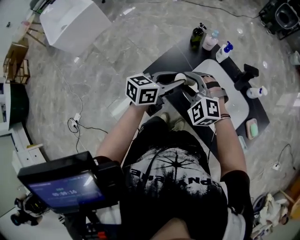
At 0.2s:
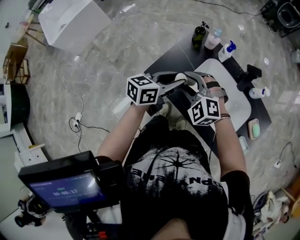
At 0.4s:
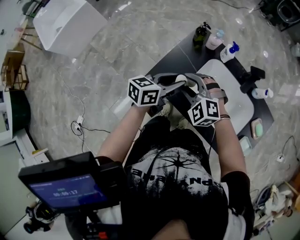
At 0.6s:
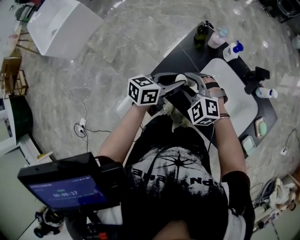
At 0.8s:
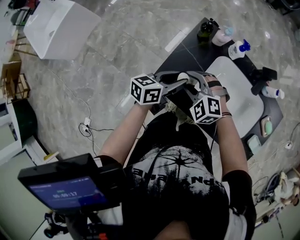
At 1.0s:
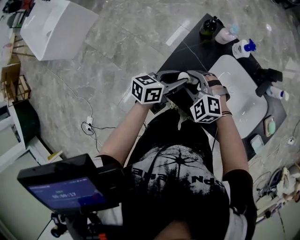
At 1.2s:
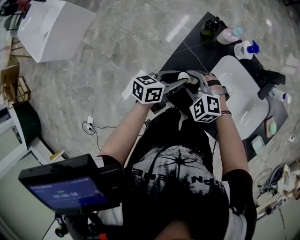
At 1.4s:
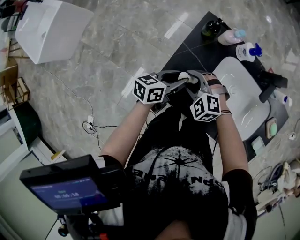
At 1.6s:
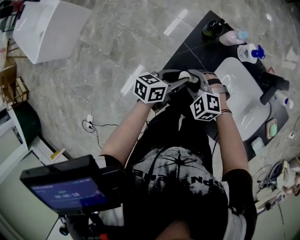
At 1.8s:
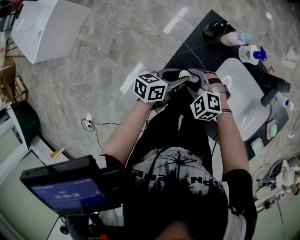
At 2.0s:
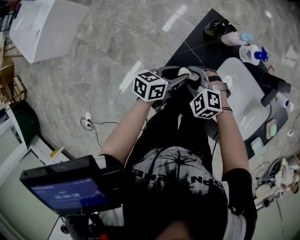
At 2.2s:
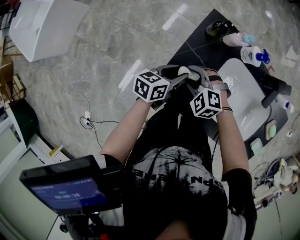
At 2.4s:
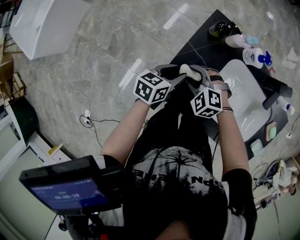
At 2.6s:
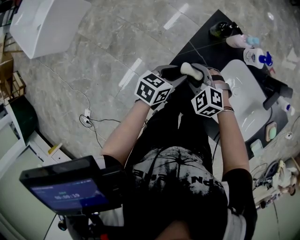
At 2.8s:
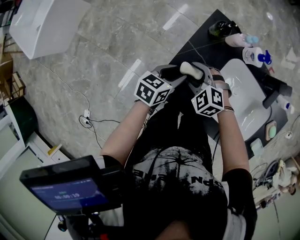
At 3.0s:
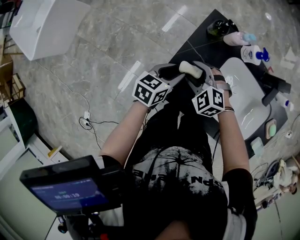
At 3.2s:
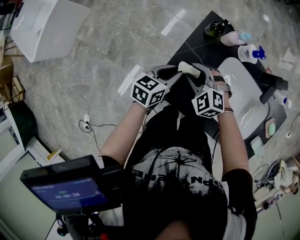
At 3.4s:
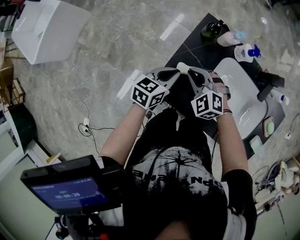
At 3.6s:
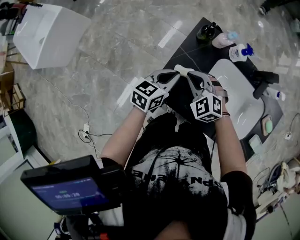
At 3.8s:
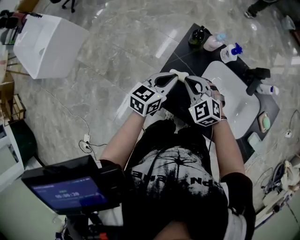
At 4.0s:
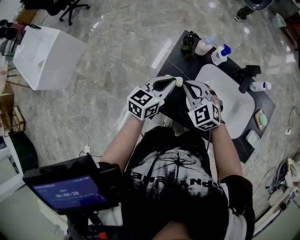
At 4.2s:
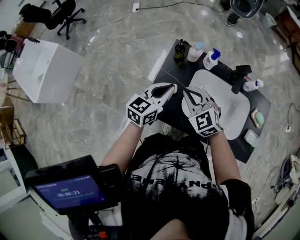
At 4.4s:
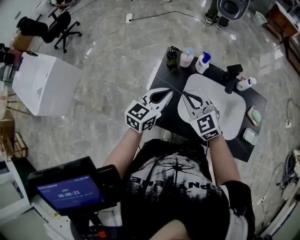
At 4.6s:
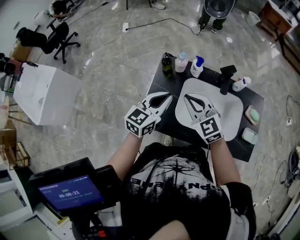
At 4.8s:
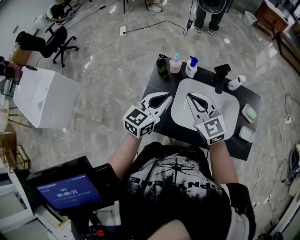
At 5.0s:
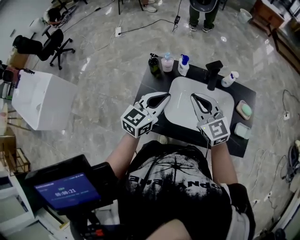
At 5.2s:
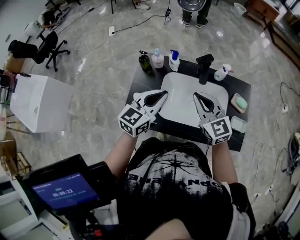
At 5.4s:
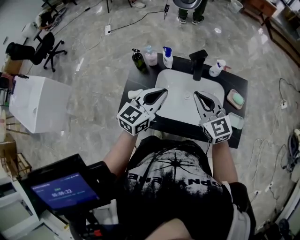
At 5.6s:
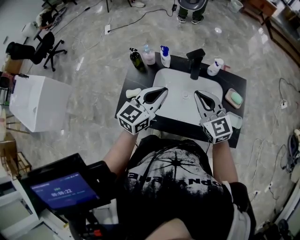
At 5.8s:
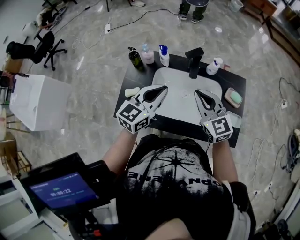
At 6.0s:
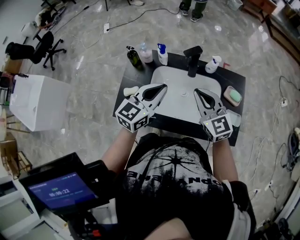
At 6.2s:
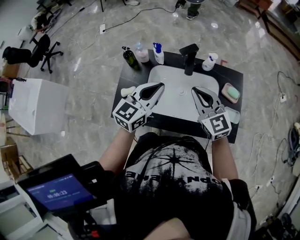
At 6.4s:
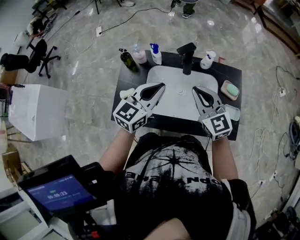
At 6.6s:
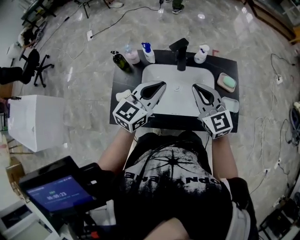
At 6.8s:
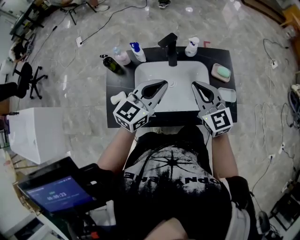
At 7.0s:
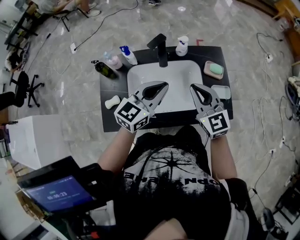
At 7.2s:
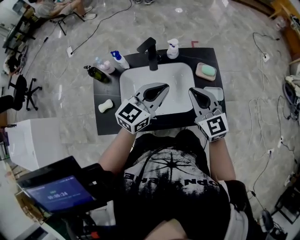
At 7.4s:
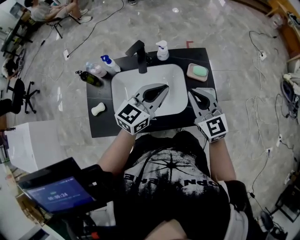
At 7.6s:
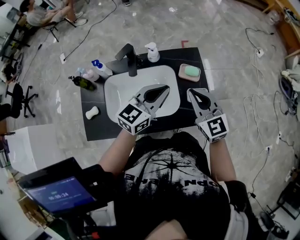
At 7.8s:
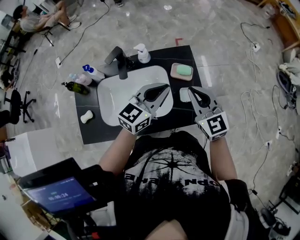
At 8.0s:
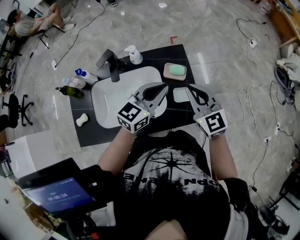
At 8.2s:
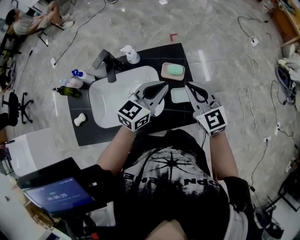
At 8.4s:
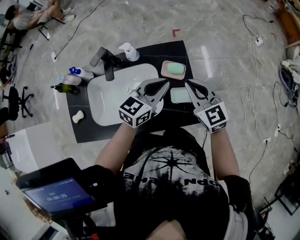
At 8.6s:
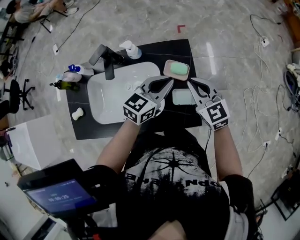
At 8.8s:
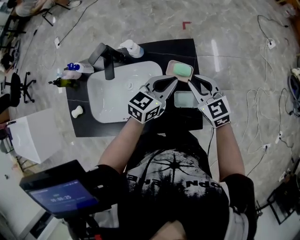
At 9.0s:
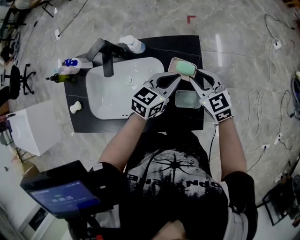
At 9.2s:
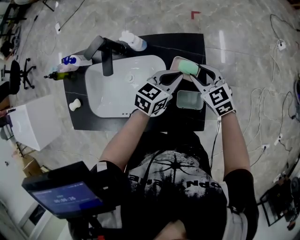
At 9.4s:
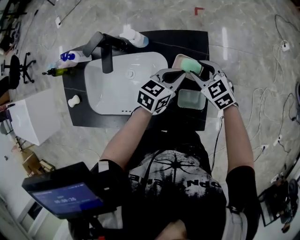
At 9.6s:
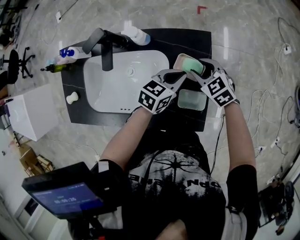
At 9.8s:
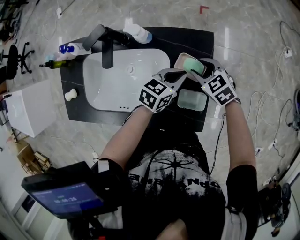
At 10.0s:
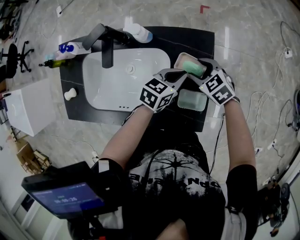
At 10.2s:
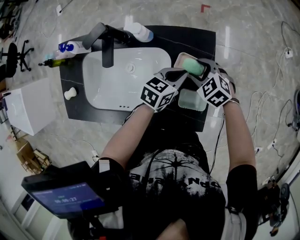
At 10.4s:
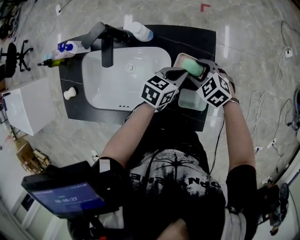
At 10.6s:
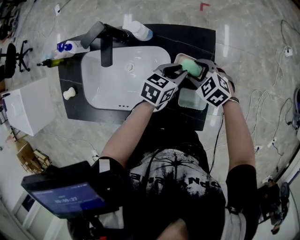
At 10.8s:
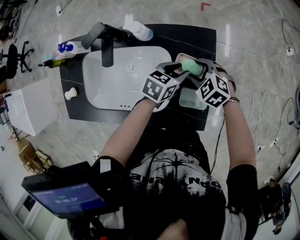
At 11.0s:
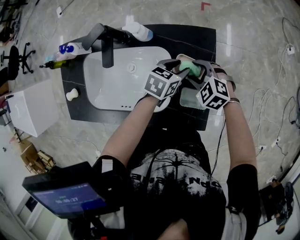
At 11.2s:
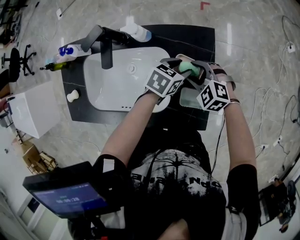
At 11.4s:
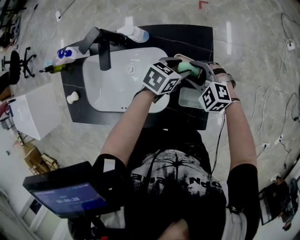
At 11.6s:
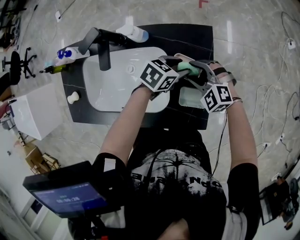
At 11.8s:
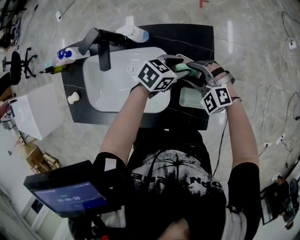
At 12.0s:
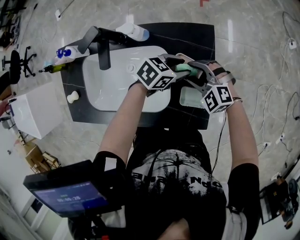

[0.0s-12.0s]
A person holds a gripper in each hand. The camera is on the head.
0.0s to 1.6s: Both grippers travel together downward and forward, some 20 cm. The left gripper swivels some 20 degrees. Meanwhile the right gripper rotates approximately 20 degrees.
1.6s to 3.0s: There are only small adjustments of the grippers.
3.0s to 4.4s: The left gripper travels upward by roughly 20 cm, turns by approximately 30 degrees, and closes its fingers. The right gripper goes about 20 cm upward and to the right, turns by about 40 degrees, and closes.
4.4s to 6.0s: The two grippers go roughly 20 cm to the right. The right gripper changes its angle by roughly 20 degrees.
6.0s to 7.6s: Both grippers travel together to the right, about 25 cm. The right gripper swivels some 20 degrees, while the left gripper changes its angle by approximately 20 degrees.
7.6s to 9.0s: The left gripper is displaced downward, forward and to the right by about 20 cm. Meanwhile the right gripper goes some 20 cm forward, downward and to the right, changes its angle by roughly 20 degrees, and opens.
9.0s to 10.4s: Both grippers move downward, roughly 10 cm. The right gripper turns by some 30 degrees, and opens its fingers.
10.4s to 12.0s: The left gripper changes its angle by some 20 degrees, and opens its fingers; the right gripper swivels approximately 30 degrees.

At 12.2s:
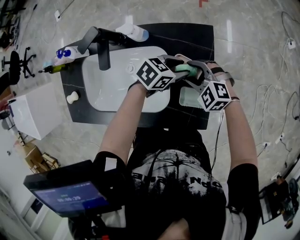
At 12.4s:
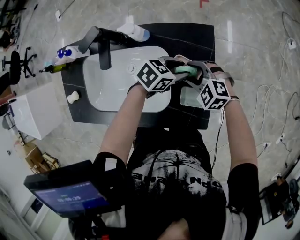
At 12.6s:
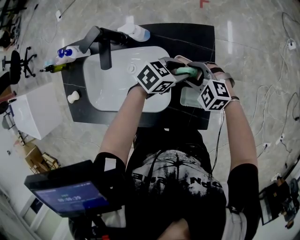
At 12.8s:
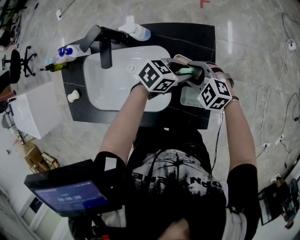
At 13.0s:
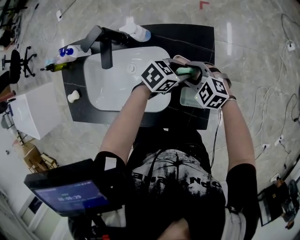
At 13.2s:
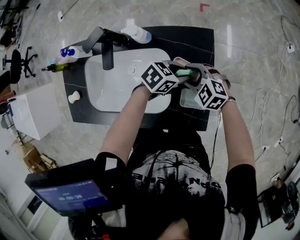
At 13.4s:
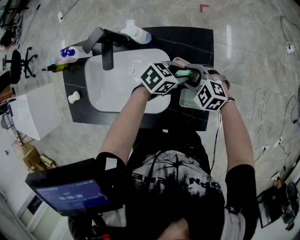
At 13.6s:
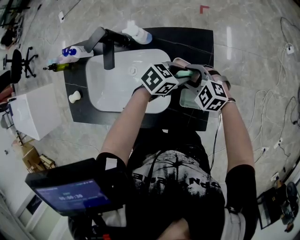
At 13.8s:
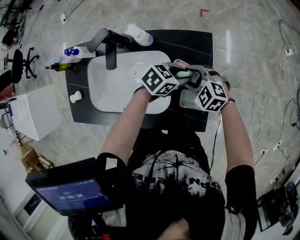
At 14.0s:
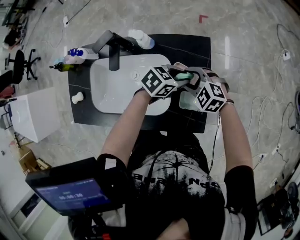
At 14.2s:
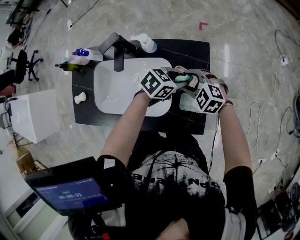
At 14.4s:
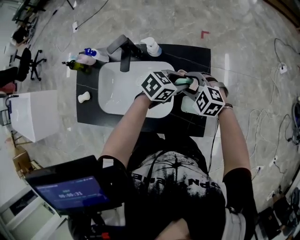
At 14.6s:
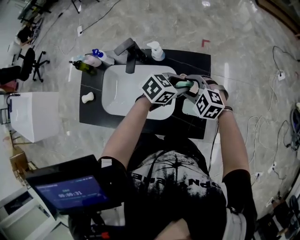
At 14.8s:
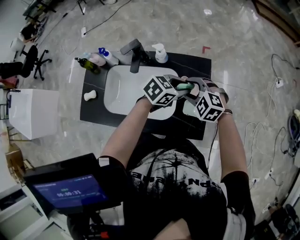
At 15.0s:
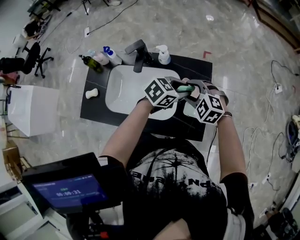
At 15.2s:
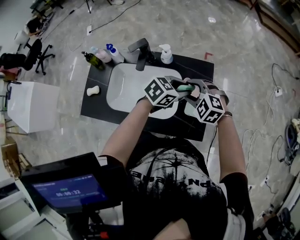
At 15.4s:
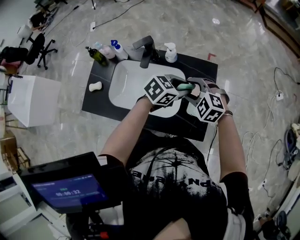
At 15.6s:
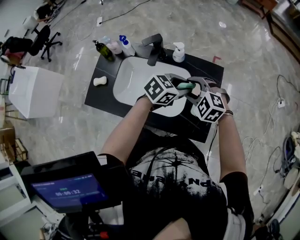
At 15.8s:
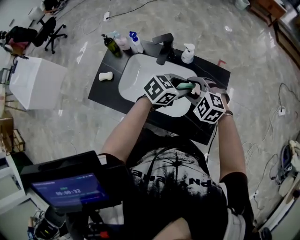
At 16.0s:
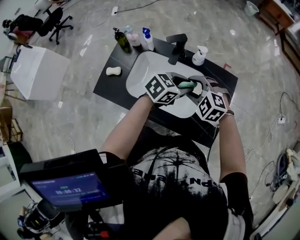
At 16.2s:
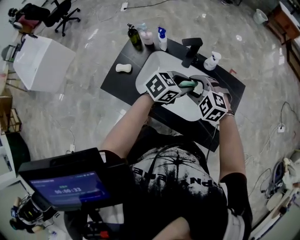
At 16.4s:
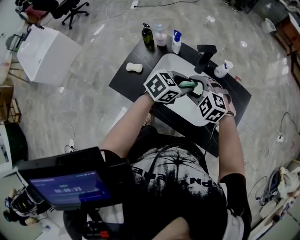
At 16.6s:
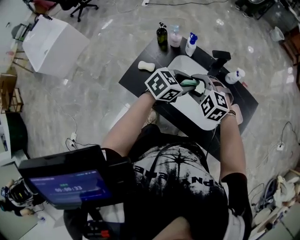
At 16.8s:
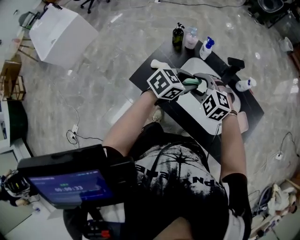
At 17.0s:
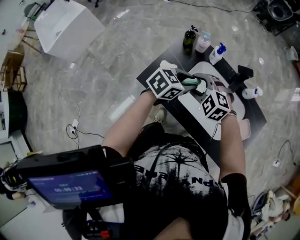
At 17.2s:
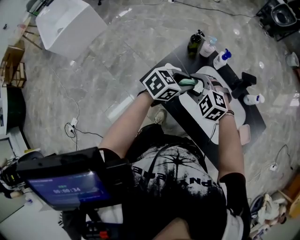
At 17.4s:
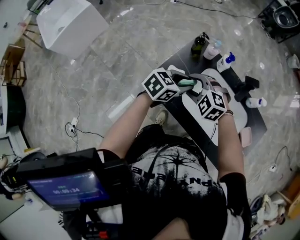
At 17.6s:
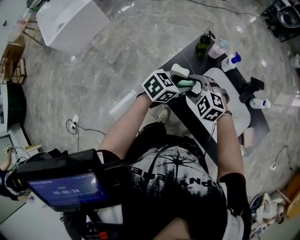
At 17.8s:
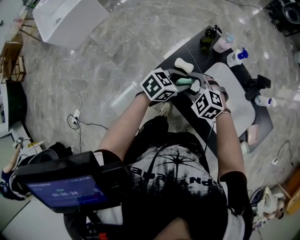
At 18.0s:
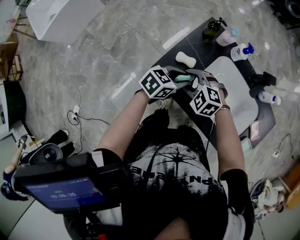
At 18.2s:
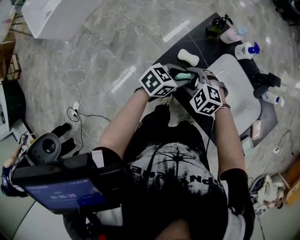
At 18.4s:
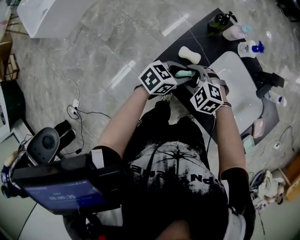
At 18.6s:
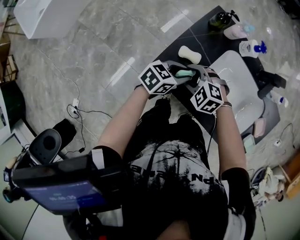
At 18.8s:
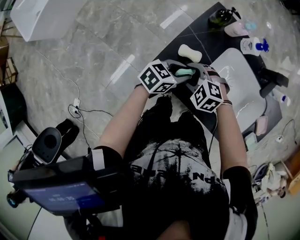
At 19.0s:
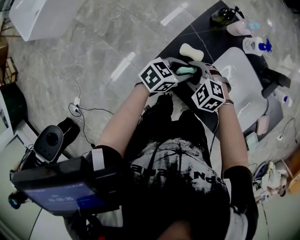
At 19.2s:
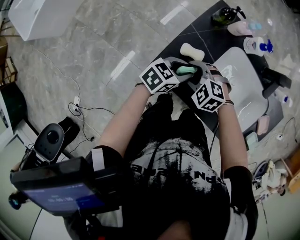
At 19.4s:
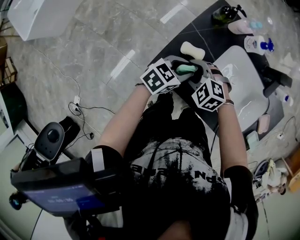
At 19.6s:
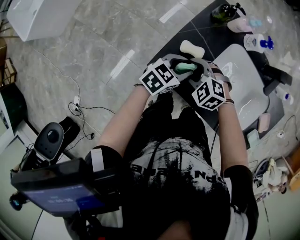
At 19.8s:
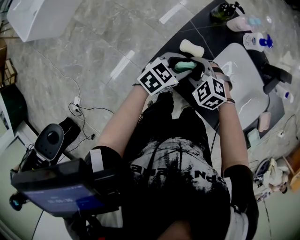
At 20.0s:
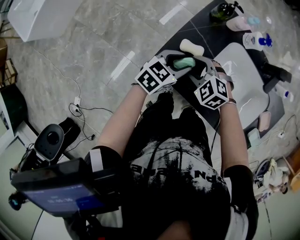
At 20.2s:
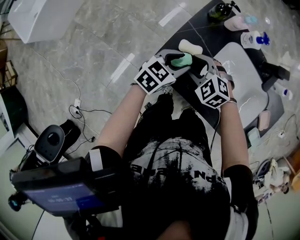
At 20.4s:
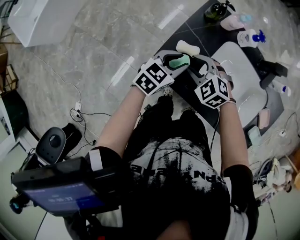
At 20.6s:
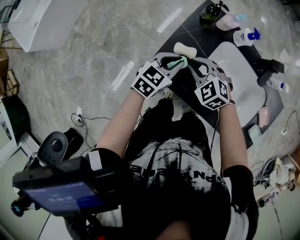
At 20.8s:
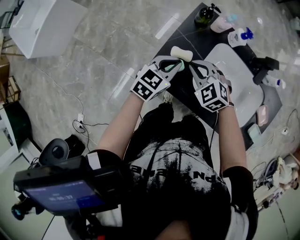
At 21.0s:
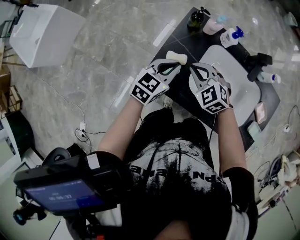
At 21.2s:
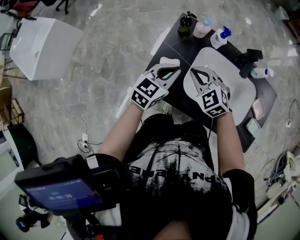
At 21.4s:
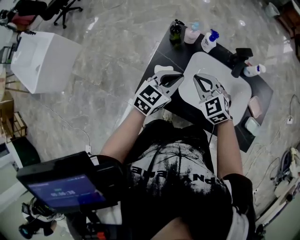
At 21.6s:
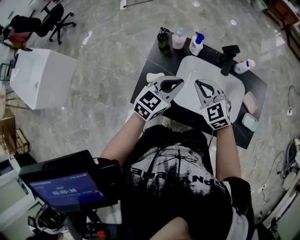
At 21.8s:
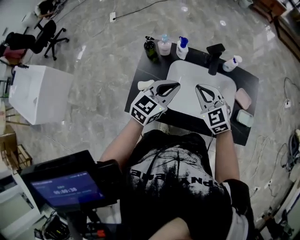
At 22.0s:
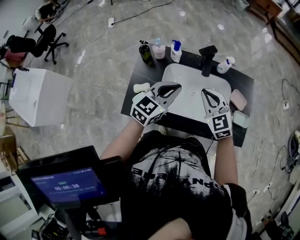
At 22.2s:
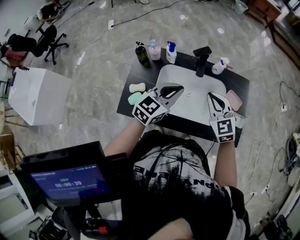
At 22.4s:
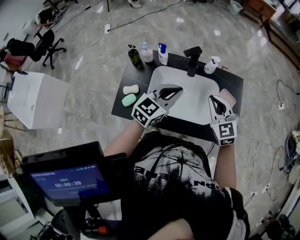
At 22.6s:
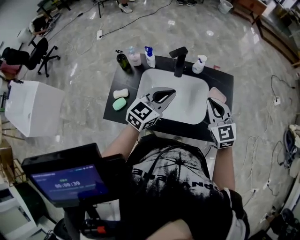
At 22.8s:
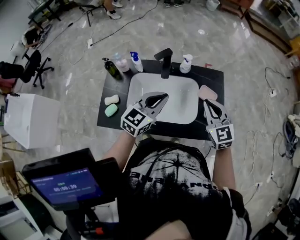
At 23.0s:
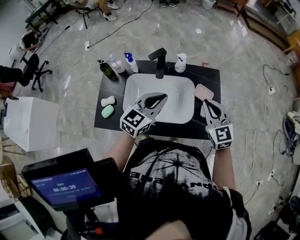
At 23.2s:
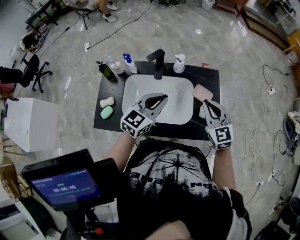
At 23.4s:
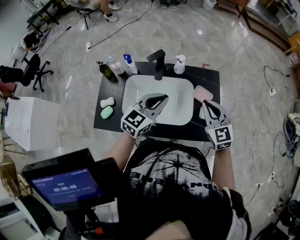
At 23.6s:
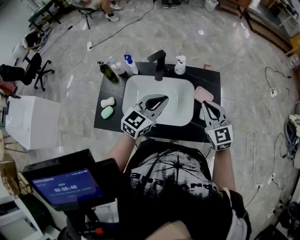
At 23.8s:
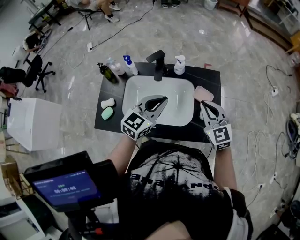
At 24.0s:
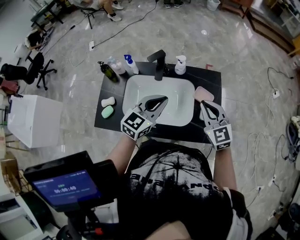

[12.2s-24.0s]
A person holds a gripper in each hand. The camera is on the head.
12.2s to 13.6s: The grippers stay close to where they were, moving slightly.
13.6s to 15.2s: The two grippers go about 15 cm upward.
15.2s to 16.6s: Both grippers travel together to the left, approximately 30 cm. The left gripper changes its angle by roughly 20 degrees. Meanwhile the right gripper turns by about 20 degrees.
16.6s to 18.2s: The left gripper ends up roughly 25 cm from where it was. The right gripper shifts by approximately 25 cm.
18.2s to 19.6s: There are only small adjustments of the grippers.
19.6s to 21.0s: Both grippers move upward, about 10 cm. The left gripper closes up, while the right gripper rotates roughly 30 degrees, and closes its fingers.
21.0s to 22.6s: The right gripper changes place by about 40 cm, and swivels roughly 50 degrees, while the left gripper changes place by roughly 30 cm, and rotates some 30 degrees.
22.6s to 24.0s: Both grippers travel together to the right, some 5 cm.
